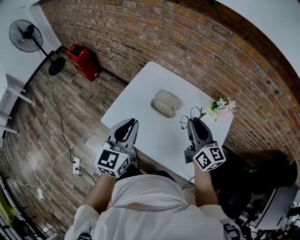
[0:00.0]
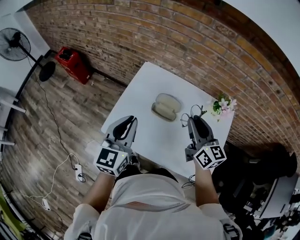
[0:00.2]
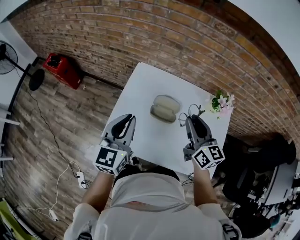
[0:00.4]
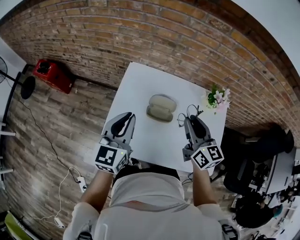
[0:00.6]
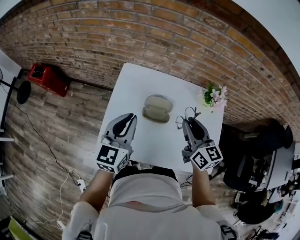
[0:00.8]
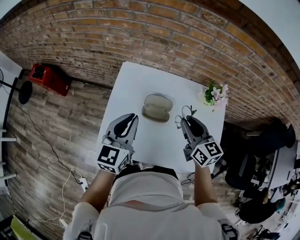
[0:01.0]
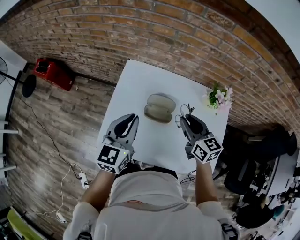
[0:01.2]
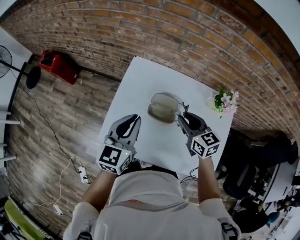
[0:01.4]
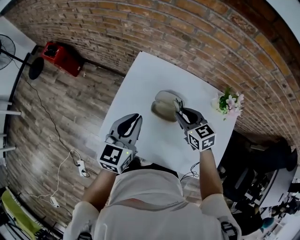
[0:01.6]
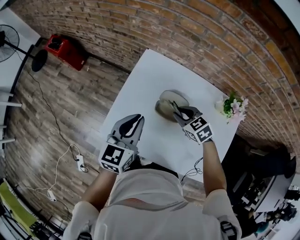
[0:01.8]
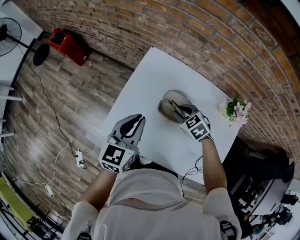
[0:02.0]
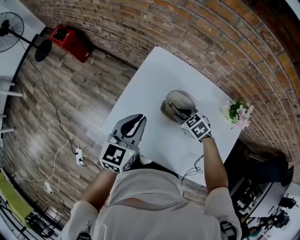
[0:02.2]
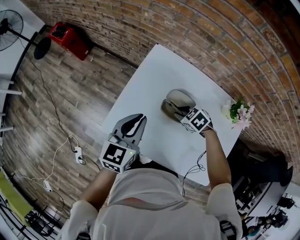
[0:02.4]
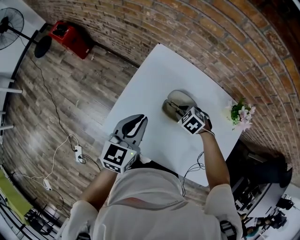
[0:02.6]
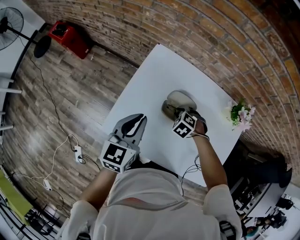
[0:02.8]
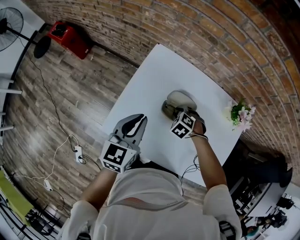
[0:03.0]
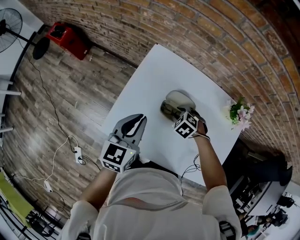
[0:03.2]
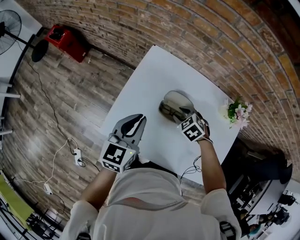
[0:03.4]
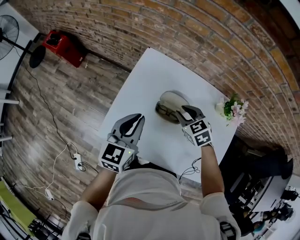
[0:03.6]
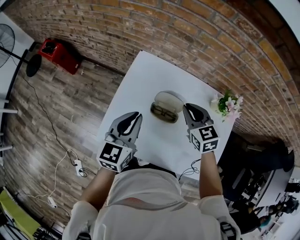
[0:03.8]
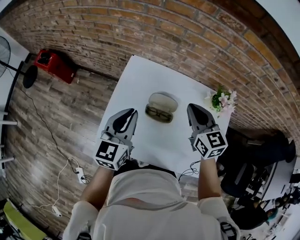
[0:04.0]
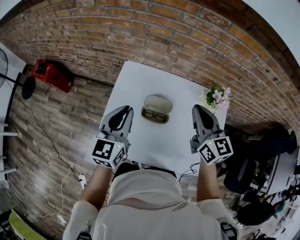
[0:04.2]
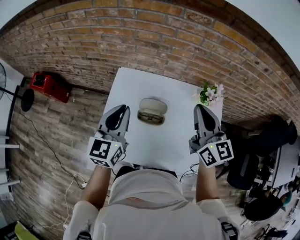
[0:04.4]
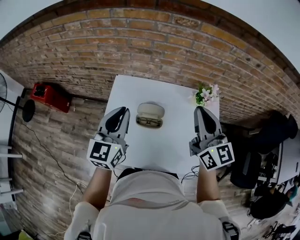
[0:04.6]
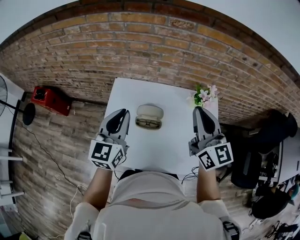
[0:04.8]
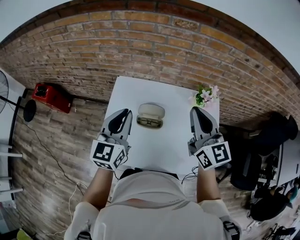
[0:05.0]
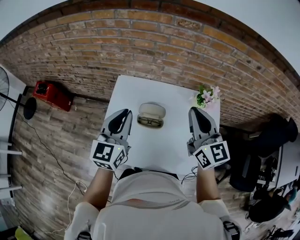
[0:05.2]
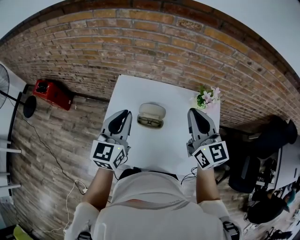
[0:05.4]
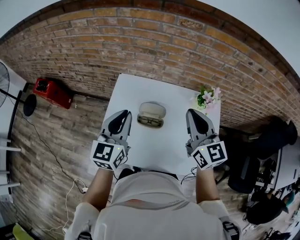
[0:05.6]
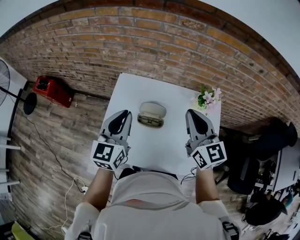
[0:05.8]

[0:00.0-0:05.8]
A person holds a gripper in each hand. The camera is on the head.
0:00.0 to 0:01.4: The left gripper is displaced forward by some 15 cm. The right gripper travels forward, downward and to the left by about 15 cm, and rotates roughly 20 degrees.
0:01.4 to 0:02.8: The right gripper travels downward by some 20 cm, and points its fingers approximately 50 degrees further downward. The left gripper heads downward, covering approximately 5 cm.
0:02.8 to 0:04.4: The right gripper moves upward, some 40 cm, angles its fingers upward, by roughly 70 degrees, and closes; the left gripper shifts about 10 cm upward.
0:04.4 to 0:05.8: The grippers move only a little.

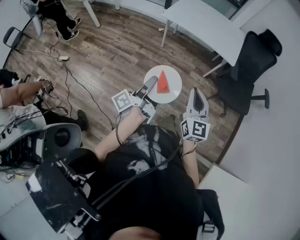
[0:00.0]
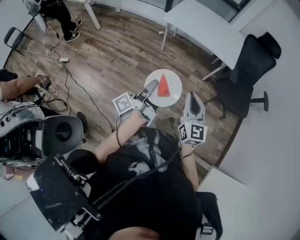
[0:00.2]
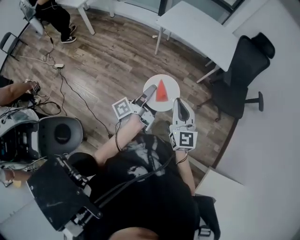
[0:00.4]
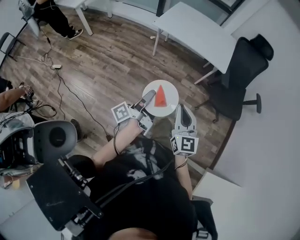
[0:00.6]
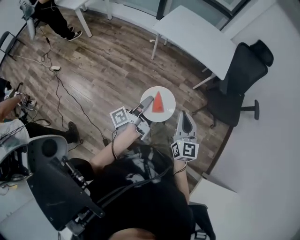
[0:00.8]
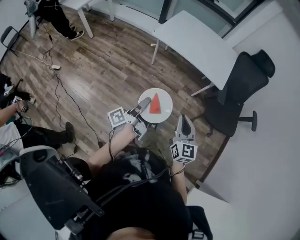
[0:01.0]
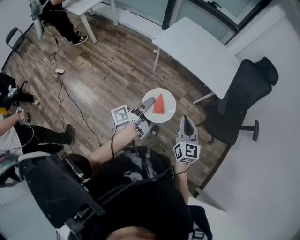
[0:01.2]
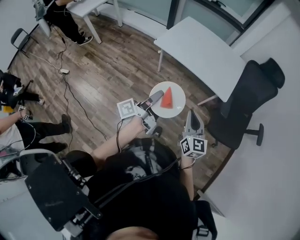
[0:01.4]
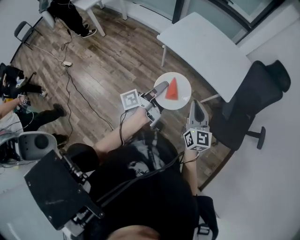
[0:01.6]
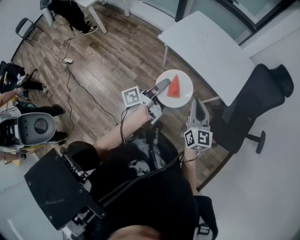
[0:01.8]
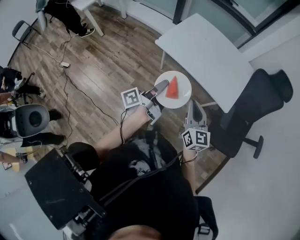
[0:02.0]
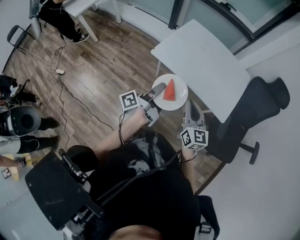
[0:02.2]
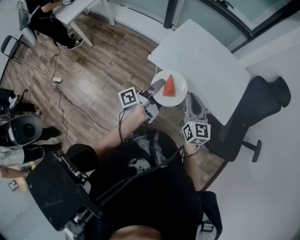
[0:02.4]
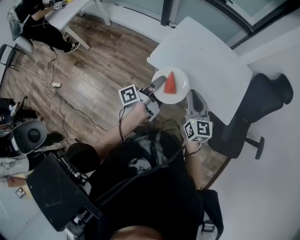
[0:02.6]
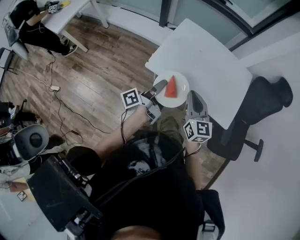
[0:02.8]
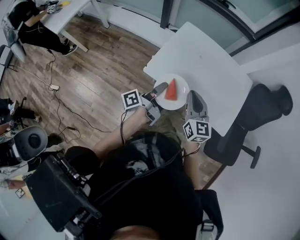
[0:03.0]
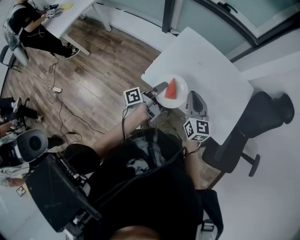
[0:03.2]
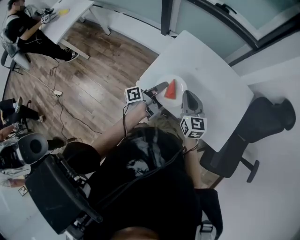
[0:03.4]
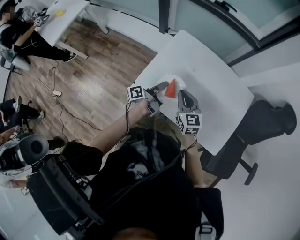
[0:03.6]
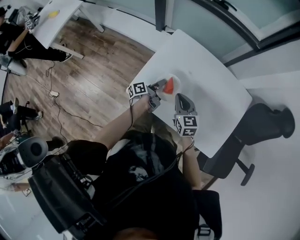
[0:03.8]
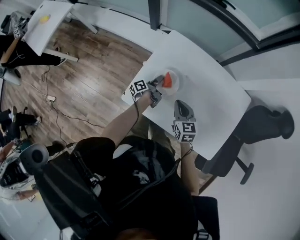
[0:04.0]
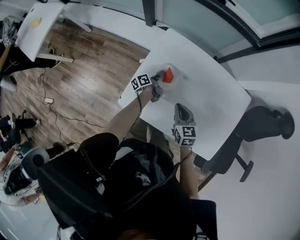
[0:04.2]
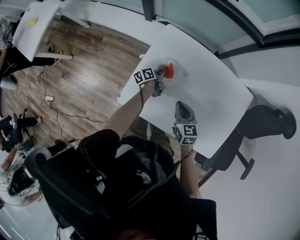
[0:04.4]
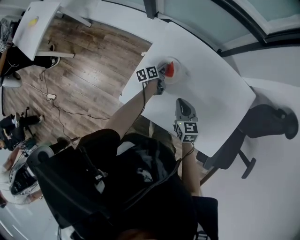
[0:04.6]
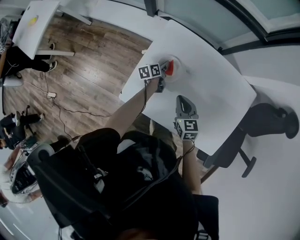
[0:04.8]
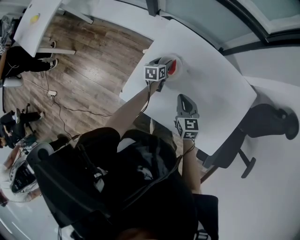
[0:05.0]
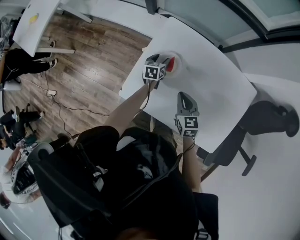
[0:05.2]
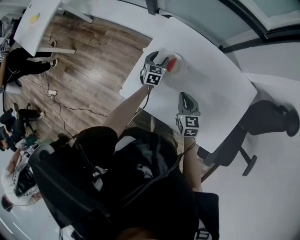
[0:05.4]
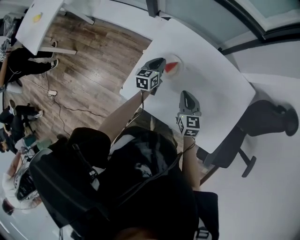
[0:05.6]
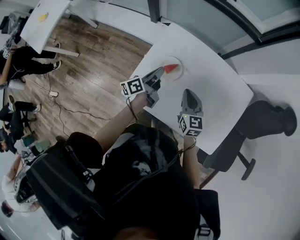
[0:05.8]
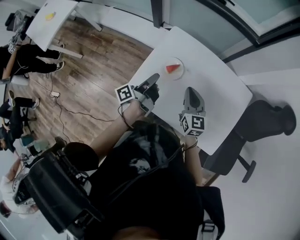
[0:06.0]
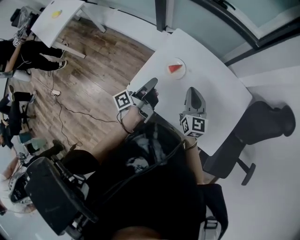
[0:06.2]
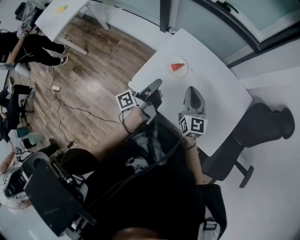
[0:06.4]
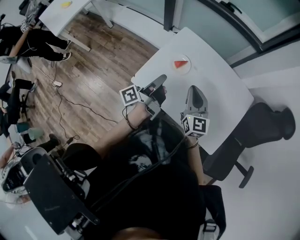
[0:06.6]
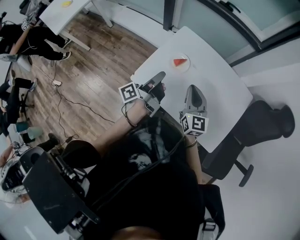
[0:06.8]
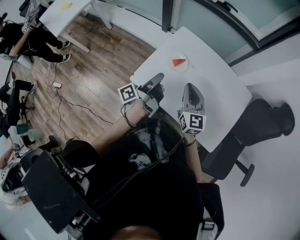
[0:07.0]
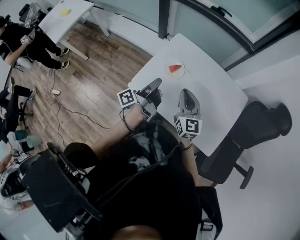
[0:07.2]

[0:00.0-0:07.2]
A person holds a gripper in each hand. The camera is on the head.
0:00.0 to 0:01.4: The right gripper changes place by about 20 cm.
0:01.4 to 0:02.8: The right gripper changes place by roughly 30 cm.
0:02.8 to 0:04.4: The right gripper shifts by approximately 40 cm, and changes its angle by some 30 degrees.
0:04.4 to 0:05.8: The right gripper moves upward, approximately 5 cm.
0:05.8 to 0:07.2: The right gripper shifts by roughly 15 cm.

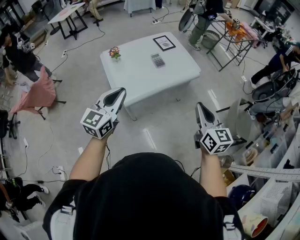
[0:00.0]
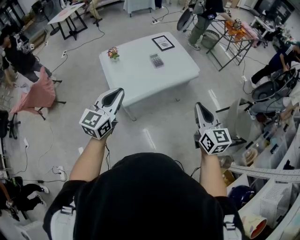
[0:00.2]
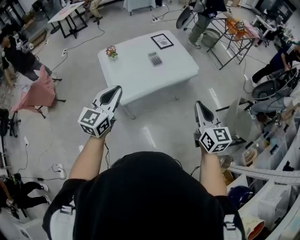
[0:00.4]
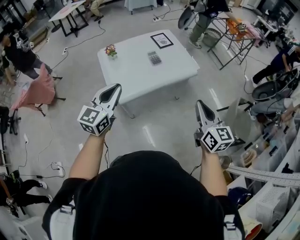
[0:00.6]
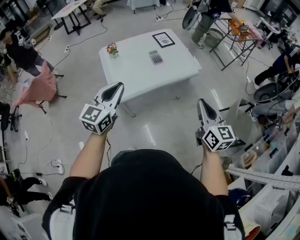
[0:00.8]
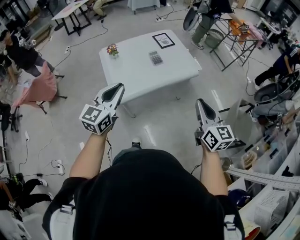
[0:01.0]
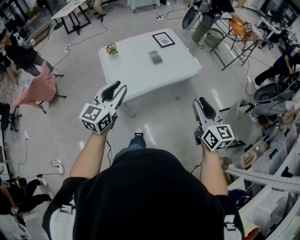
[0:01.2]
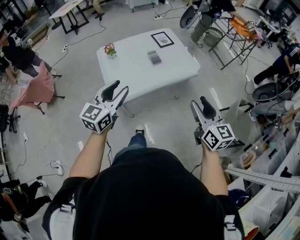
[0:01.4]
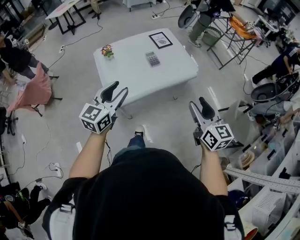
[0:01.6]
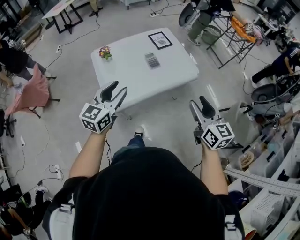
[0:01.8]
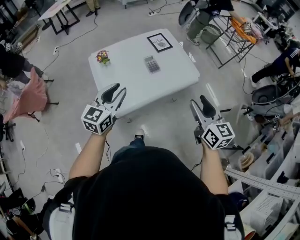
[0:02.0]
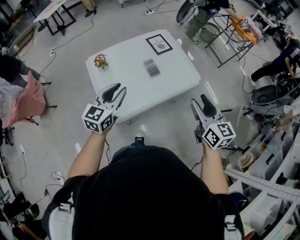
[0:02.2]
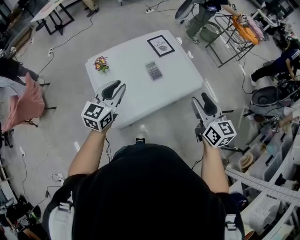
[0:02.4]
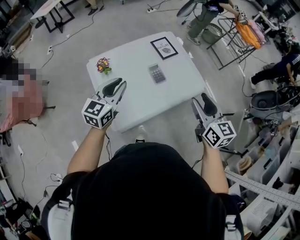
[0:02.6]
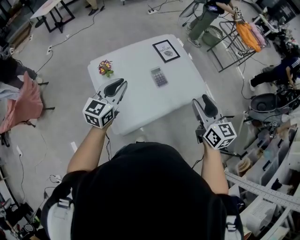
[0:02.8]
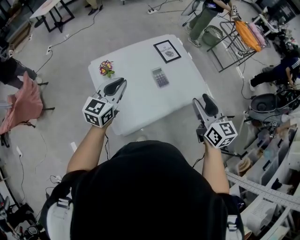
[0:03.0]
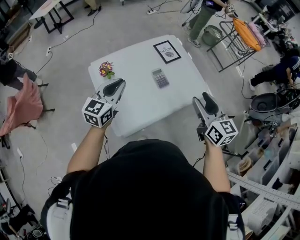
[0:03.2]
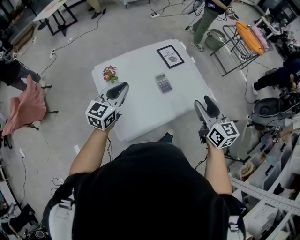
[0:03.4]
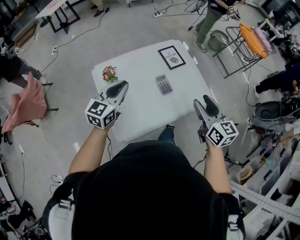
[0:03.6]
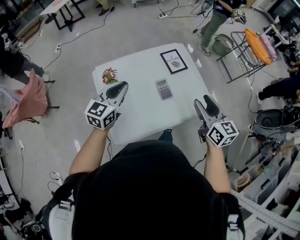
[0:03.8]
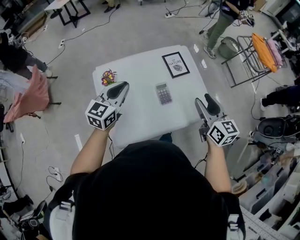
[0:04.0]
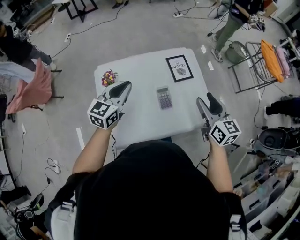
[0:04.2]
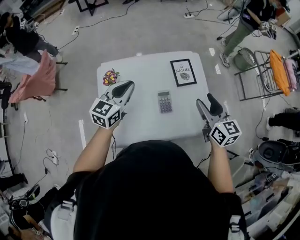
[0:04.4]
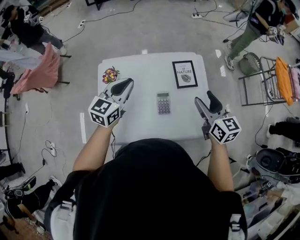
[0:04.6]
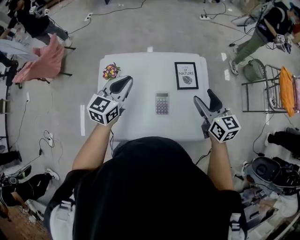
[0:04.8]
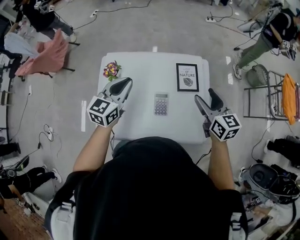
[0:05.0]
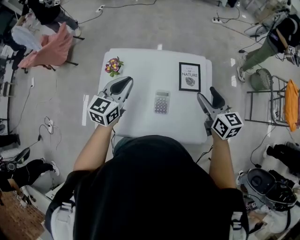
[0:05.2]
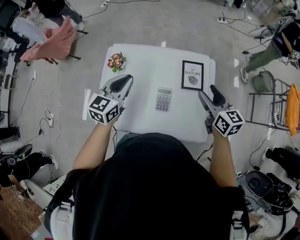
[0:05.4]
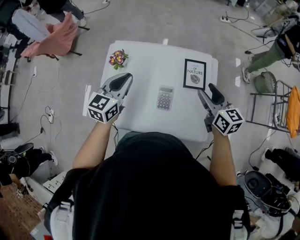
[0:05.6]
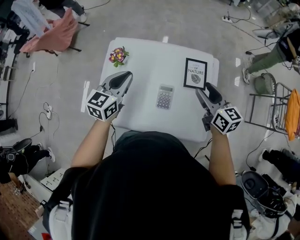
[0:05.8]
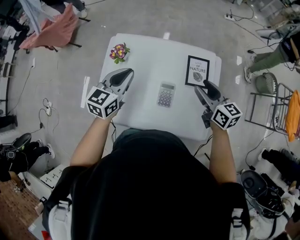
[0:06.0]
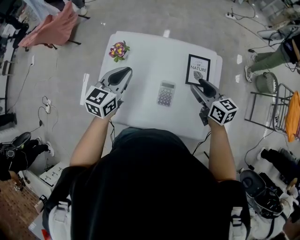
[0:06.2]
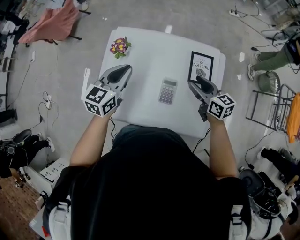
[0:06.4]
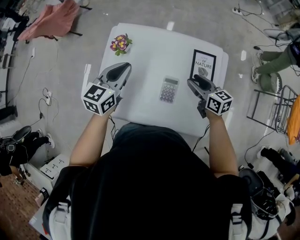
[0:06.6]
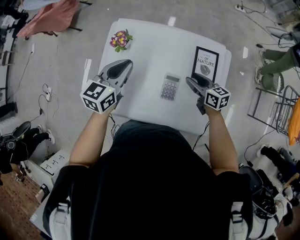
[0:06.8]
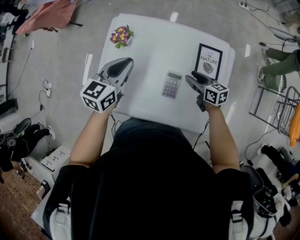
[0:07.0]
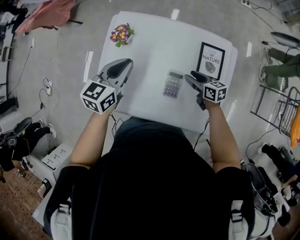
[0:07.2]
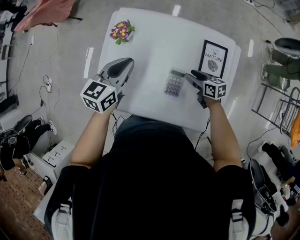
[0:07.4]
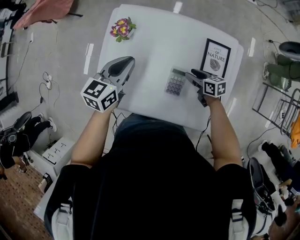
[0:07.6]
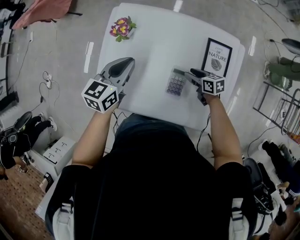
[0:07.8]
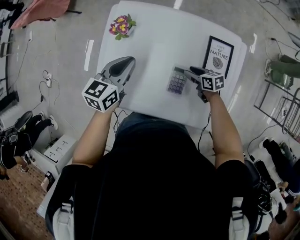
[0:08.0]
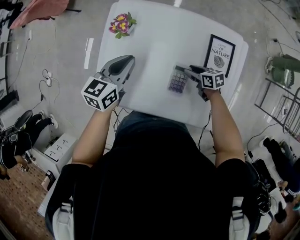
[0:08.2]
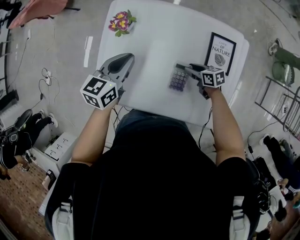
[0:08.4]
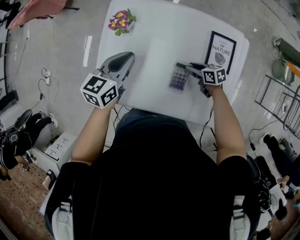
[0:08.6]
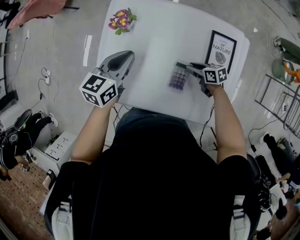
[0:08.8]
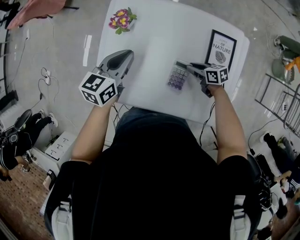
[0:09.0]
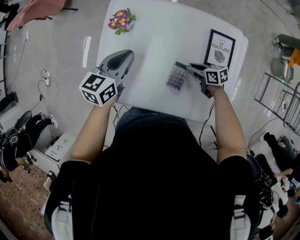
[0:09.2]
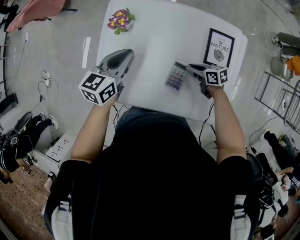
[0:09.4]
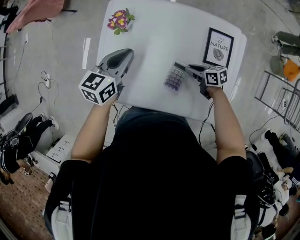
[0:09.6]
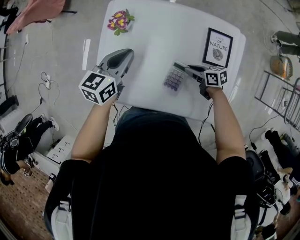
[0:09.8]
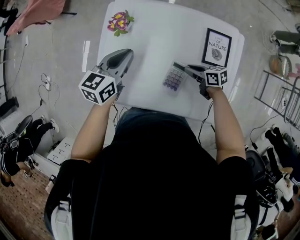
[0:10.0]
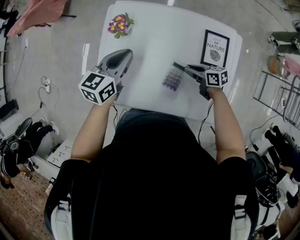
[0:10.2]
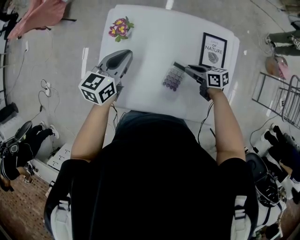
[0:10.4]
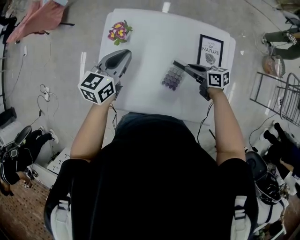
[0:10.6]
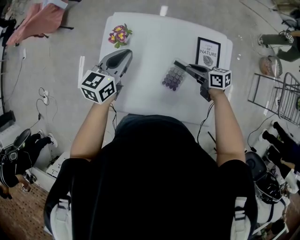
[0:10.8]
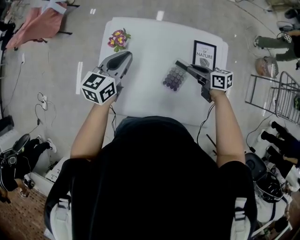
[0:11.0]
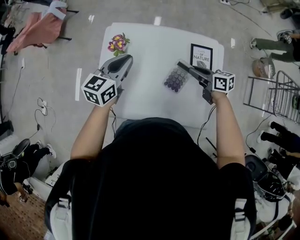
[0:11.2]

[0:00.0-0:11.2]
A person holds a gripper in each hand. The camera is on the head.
0:00.0 to 0:01.6: The right gripper shifts approximately 5 cm forward, and opens up. The left gripper is displaced forward and to the right by approximately 10 cm, and opens up.
0:01.6 to 0:03.2: Both grippers move forward and to the left, approximately 30 cm. The left gripper closes up.
0:03.2 to 0:04.8: The right gripper changes place by approximately 30 cm, and turns by roughly 30 degrees. Meanwhile the left gripper shifts by approximately 20 cm, and rotates about 30 degrees.
0:04.8 to 0:06.4: The left gripper ends up about 5 cm from where it was. The right gripper travels downward, forward and to the left by about 15 cm, and changes its angle by about 30 degrees.
0:06.4 to 0:08.0: The right gripper heads downward, covering about 25 cm, and turns by approximately 30 degrees; the left gripper shifts roughly 10 cm downward.
0:08.0 to 0:09.6: The grippers stay close to where they were, moving slightly.
0:09.6 to 0:11.2: The left gripper moves upward, some 5 cm. Meanwhile the right gripper moves upward, some 15 cm.
